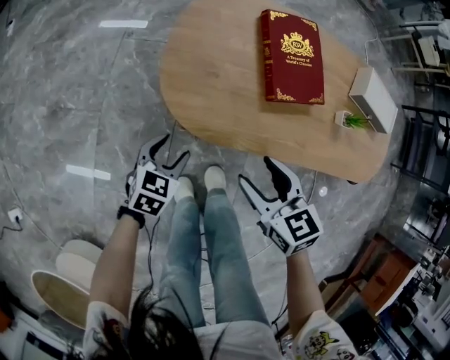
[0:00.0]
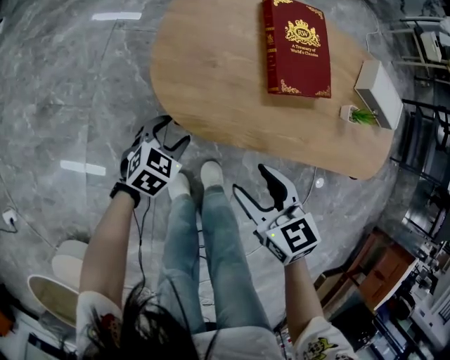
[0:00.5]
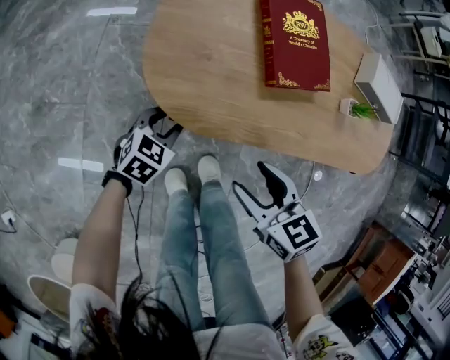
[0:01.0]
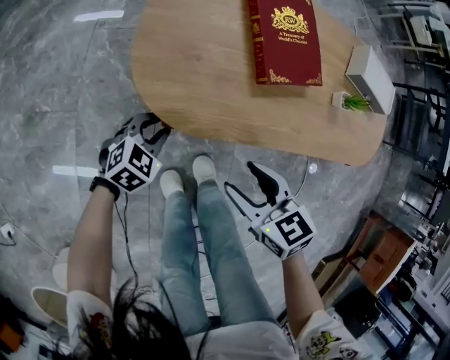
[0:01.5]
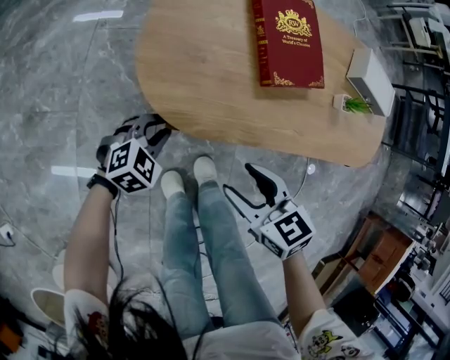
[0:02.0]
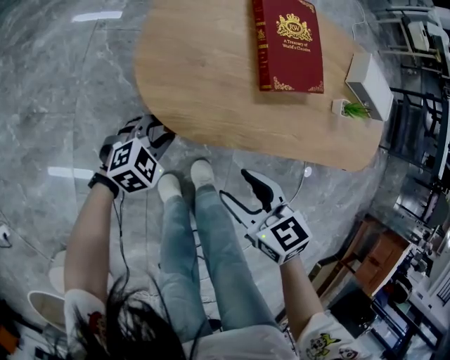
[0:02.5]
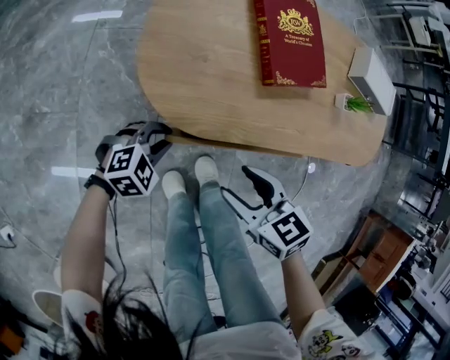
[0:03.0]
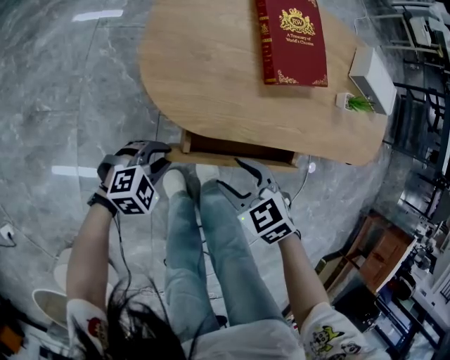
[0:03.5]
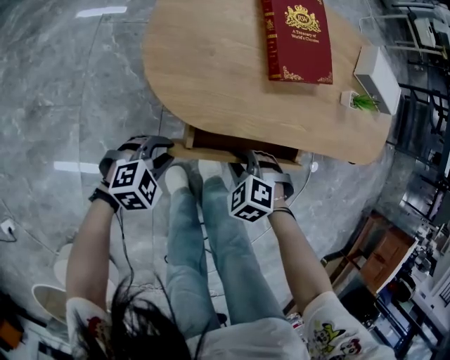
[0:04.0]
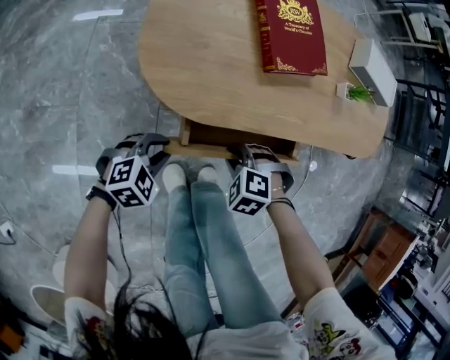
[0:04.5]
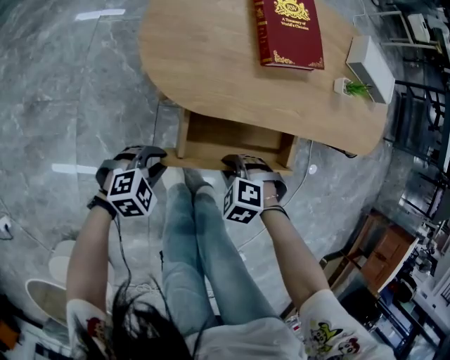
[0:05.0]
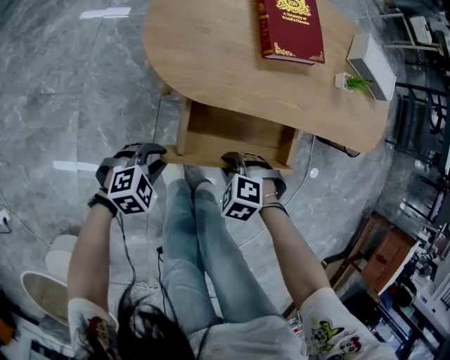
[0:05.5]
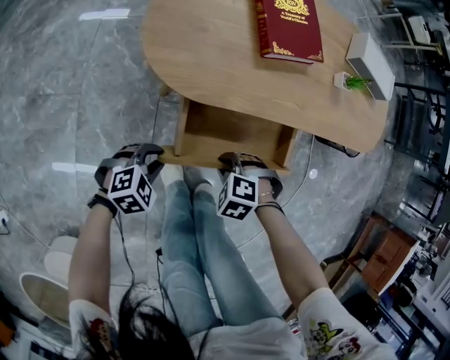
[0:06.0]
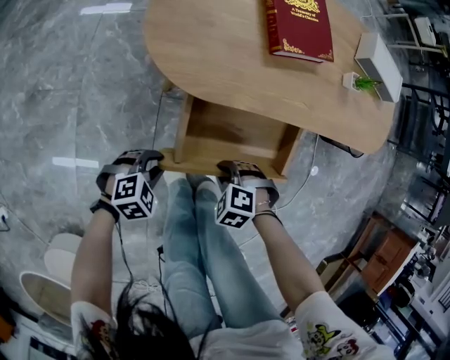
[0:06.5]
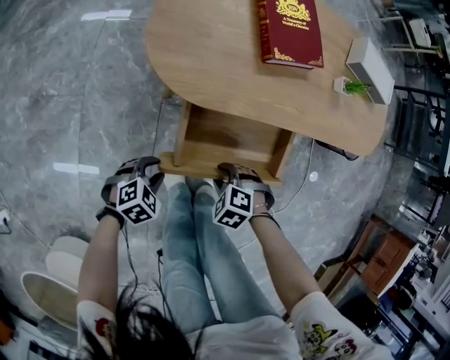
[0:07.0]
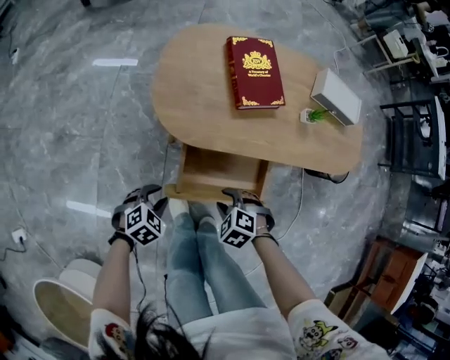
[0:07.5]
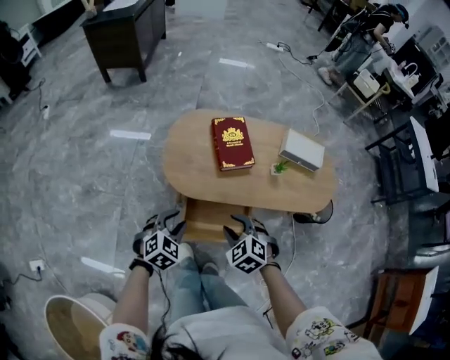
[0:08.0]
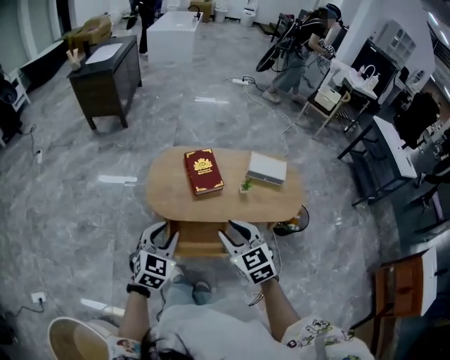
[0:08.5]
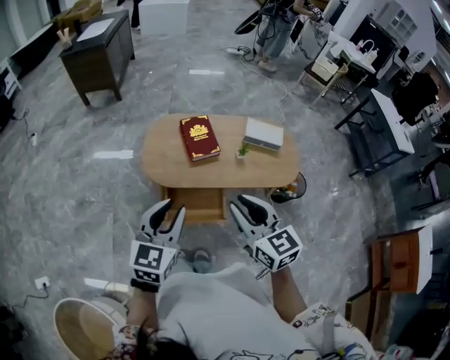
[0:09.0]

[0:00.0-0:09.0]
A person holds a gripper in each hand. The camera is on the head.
0:00.0 to 0:02.0: The left gripper moves downward, approximately 5 cm, swivels approximately 40 degrees, and closes its fingers; the right gripper changes place by some 5 cm.
0:02.0 to 0:04.5: The left gripper shifts by approximately 10 cm. The right gripper moves downward, some 15 cm, angles its fingers downward, by some 40 degrees, and closes up.
0:04.5 to 0:07.0: The left gripper changes place by about 10 cm, while the right gripper moves about 10 cm.
0:07.0 to 0:09.0: The two grippers go roughly 60 cm upward. The left gripper tips its fingers upward by approximately 50 degrees, while the right gripper points its fingers approximately 70 degrees further upward.

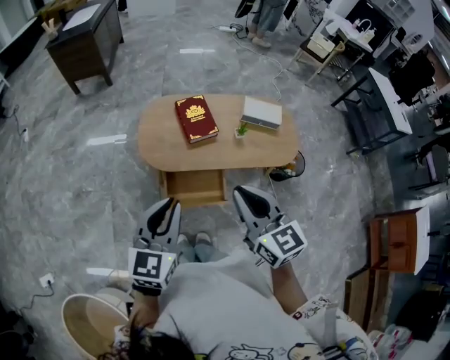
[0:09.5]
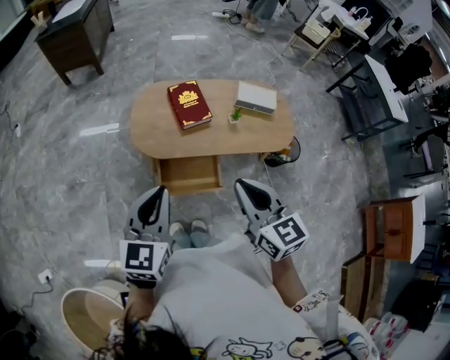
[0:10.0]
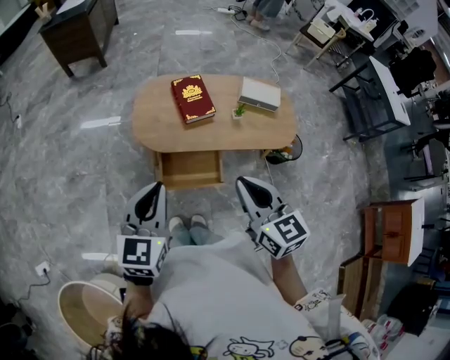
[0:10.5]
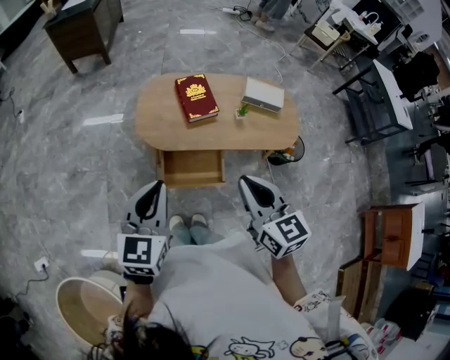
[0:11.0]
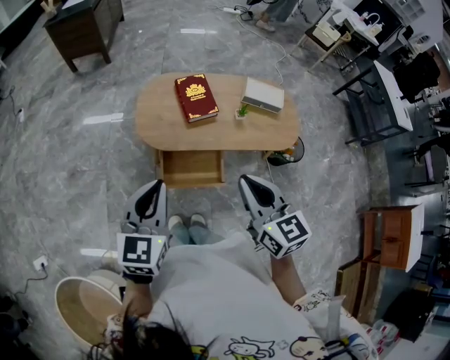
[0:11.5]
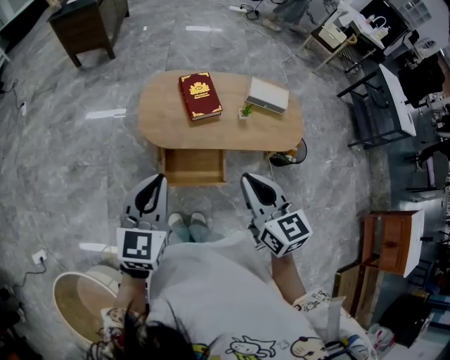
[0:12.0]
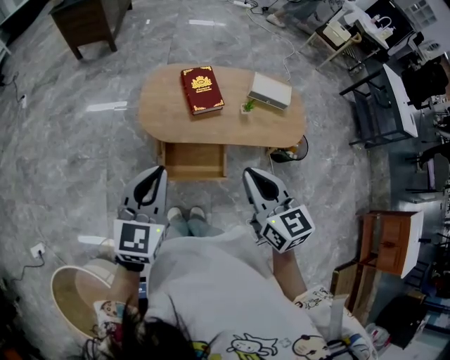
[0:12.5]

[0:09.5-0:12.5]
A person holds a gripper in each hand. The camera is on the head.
0:09.5 to 0:12.5: There are only small adjustments of the grippers.

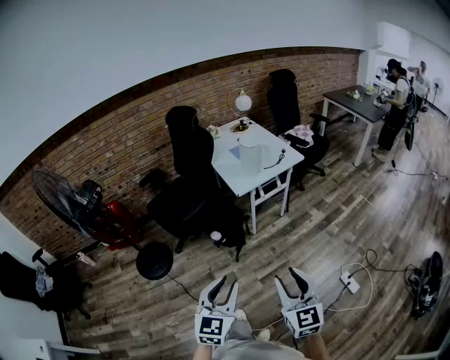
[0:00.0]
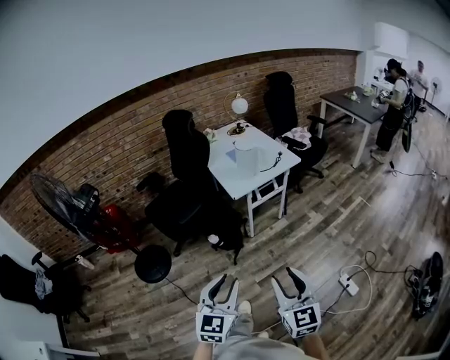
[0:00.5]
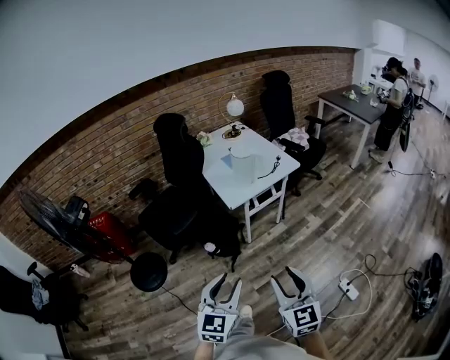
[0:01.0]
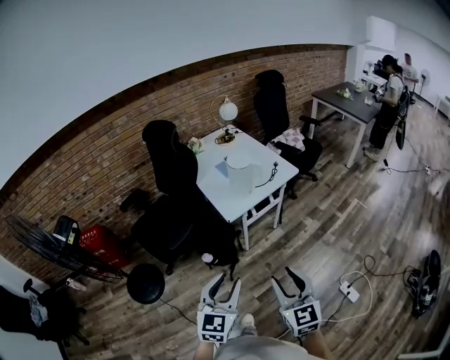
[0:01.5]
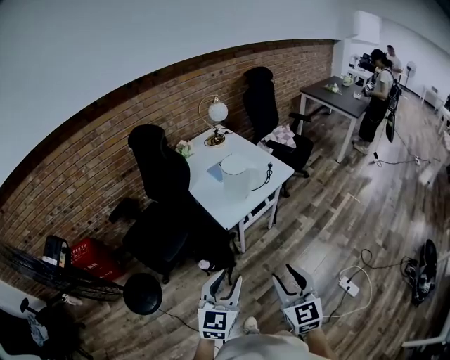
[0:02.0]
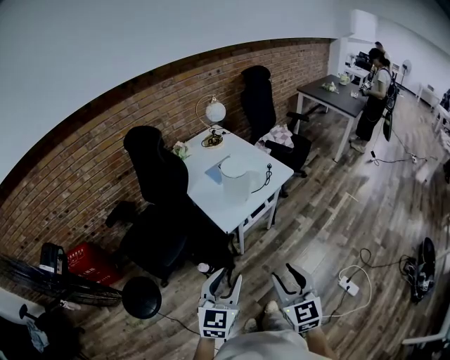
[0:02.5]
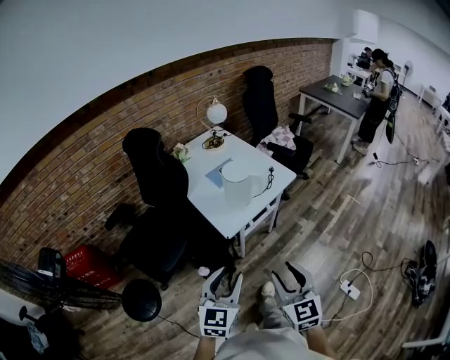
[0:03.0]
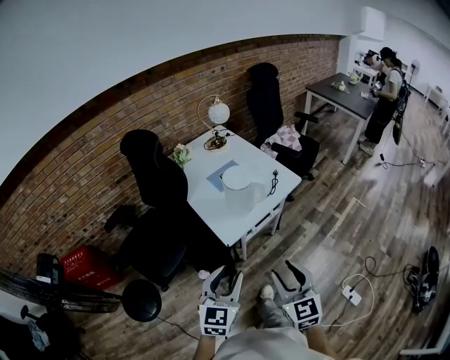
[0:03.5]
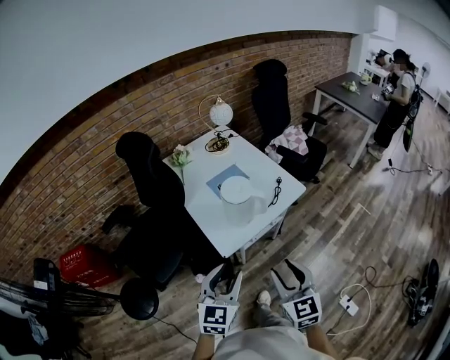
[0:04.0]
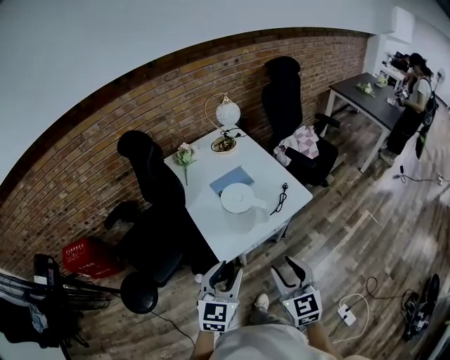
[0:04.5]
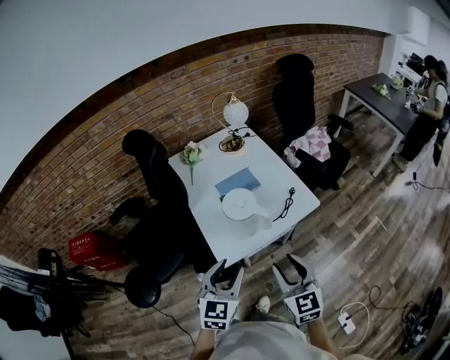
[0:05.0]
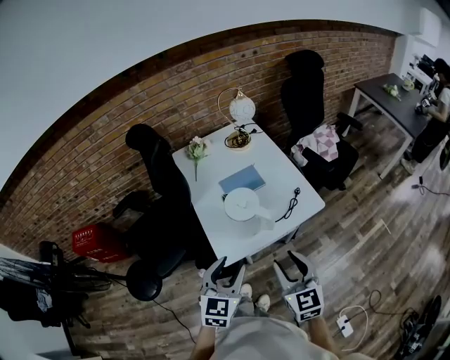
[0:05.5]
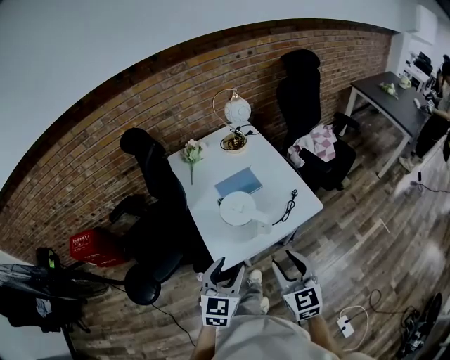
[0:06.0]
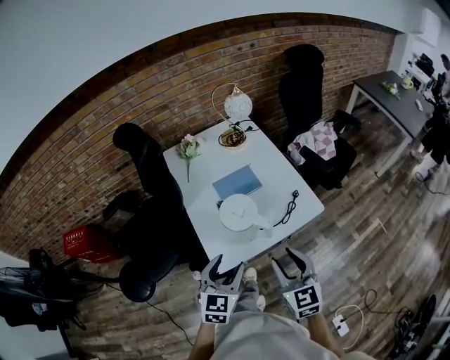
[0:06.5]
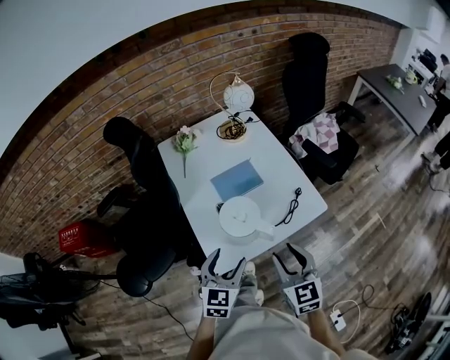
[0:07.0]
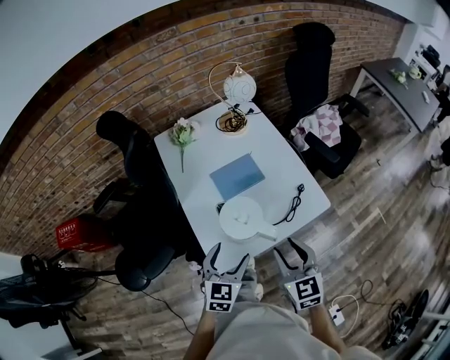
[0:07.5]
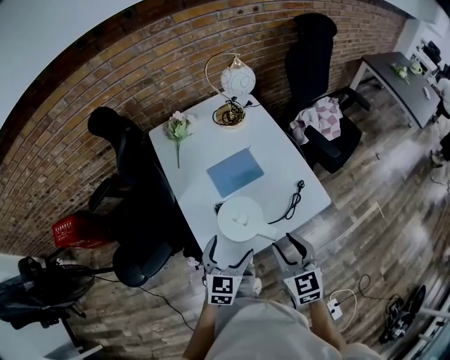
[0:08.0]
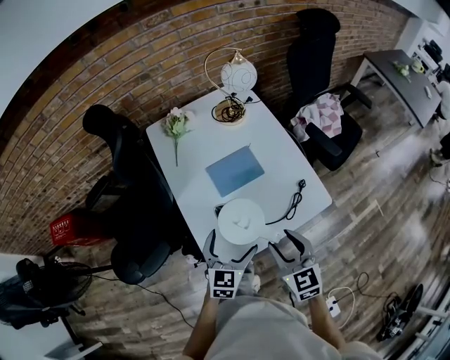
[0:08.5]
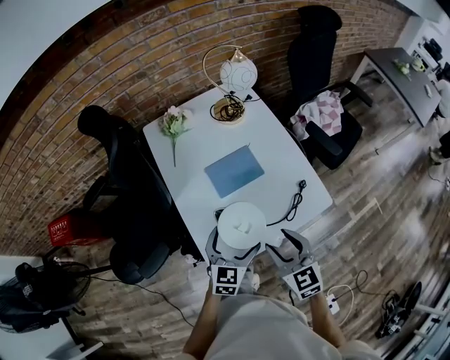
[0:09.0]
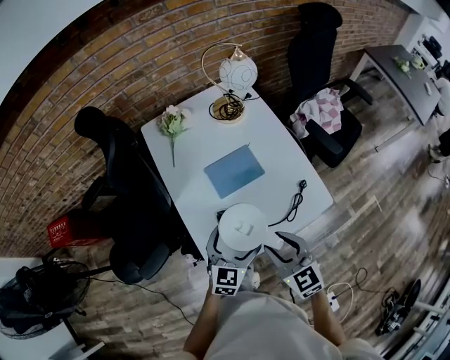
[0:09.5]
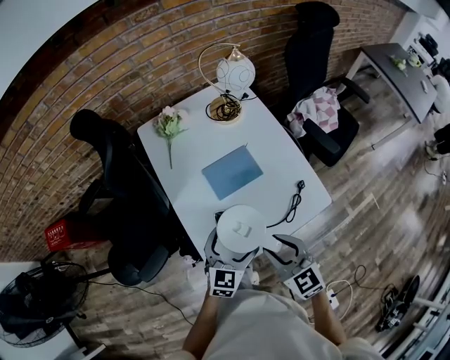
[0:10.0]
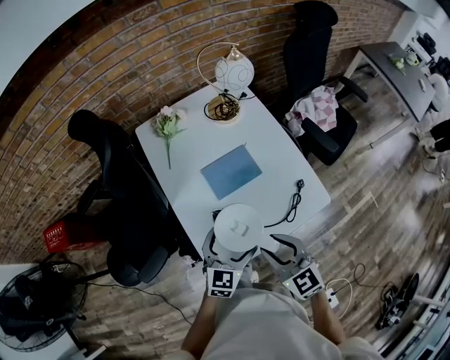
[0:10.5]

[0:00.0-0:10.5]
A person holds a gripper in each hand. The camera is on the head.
0:00.0 to 0:02.0: Both grippers move forward, roughly 30 cm.
0:02.0 to 0:04.0: The two grippers go roughly 20 cm forward.
0:04.0 to 0:06.5: The left gripper heads forward and downward, covering some 20 cm, while the right gripper is displaced forward by roughly 20 cm.
0:06.5 to 0:08.5: Both grippers travel together forward and downward, some 15 cm. The left gripper opens.
0:08.5 to 0:10.5: The grippers make only small movements.

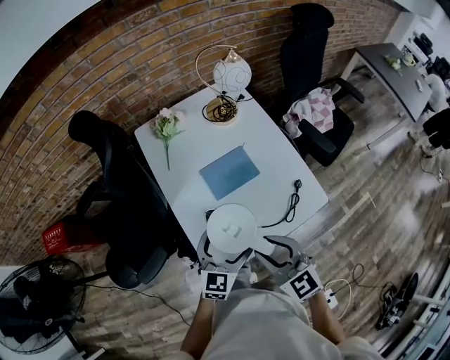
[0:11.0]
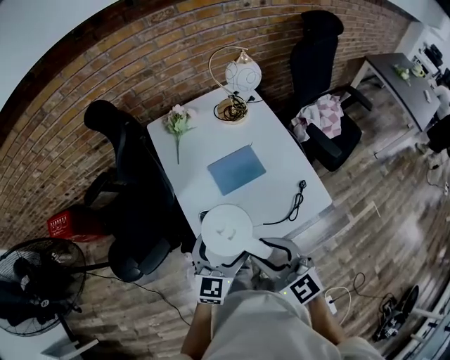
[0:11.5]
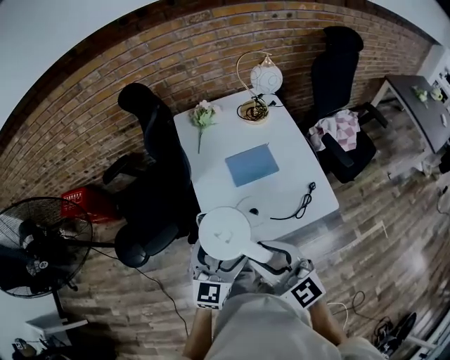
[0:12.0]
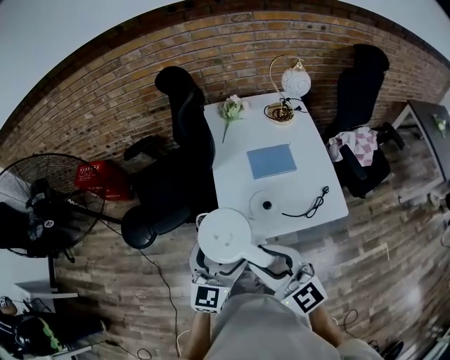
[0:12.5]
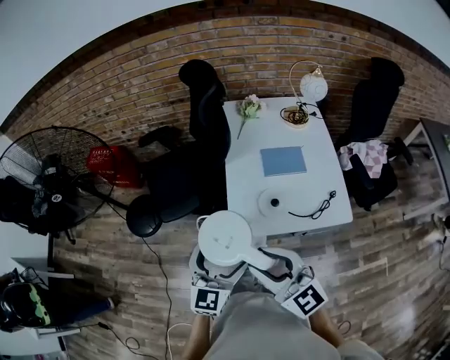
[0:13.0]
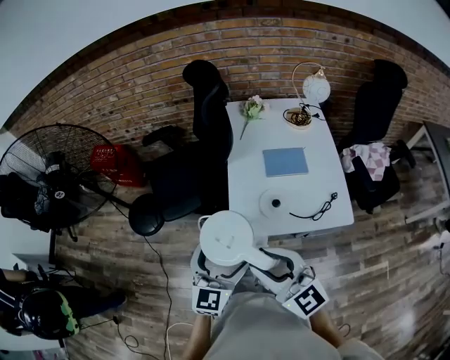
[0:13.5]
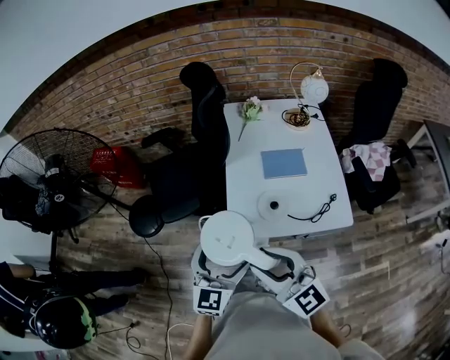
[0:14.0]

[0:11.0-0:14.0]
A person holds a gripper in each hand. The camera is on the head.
0:11.0 to 0:12.5: Both grippers travel together backward, upward and to the left, roughly 20 cm. The left gripper turns by about 30 degrees; the right gripper changes its angle by some 30 degrees.
0:12.5 to 0:14.0: The grippers move only a little.

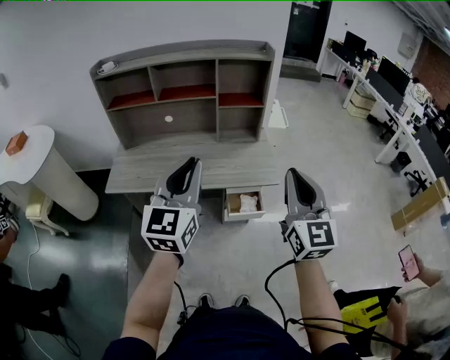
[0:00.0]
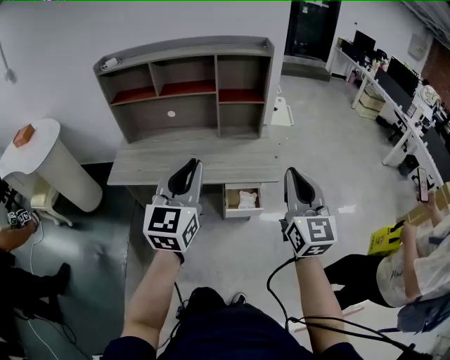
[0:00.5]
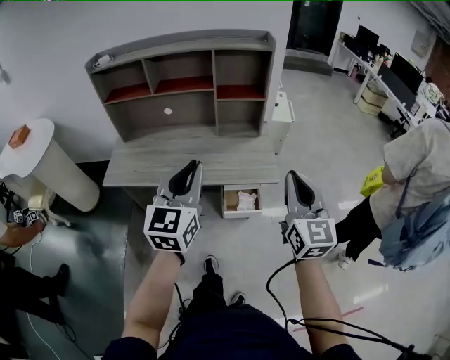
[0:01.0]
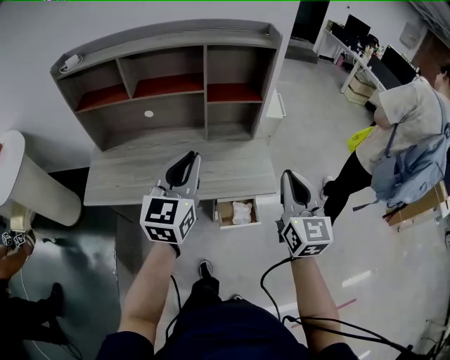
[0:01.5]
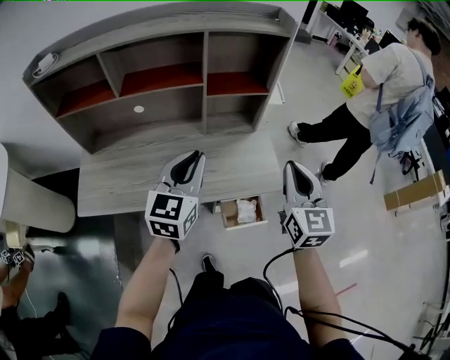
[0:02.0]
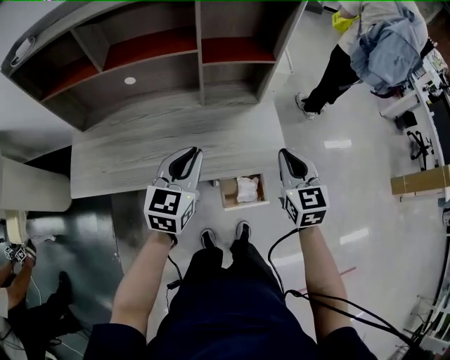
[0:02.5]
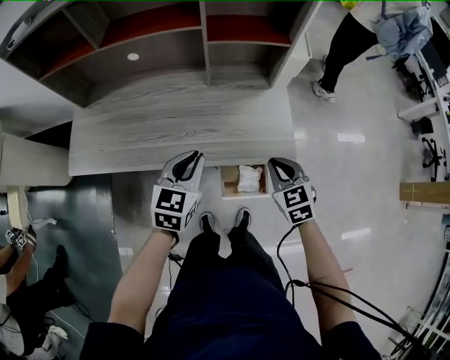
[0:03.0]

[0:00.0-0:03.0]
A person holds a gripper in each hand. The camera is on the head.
0:00.0 to 0:01.5: Both grippers move forward and downward, roughly 20 cm.
0:01.5 to 0:03.0: The two grippers go roughly 25 cm downward. The left gripper rotates about 30 degrees; the right gripper angles its fingers downward, by about 40 degrees.
